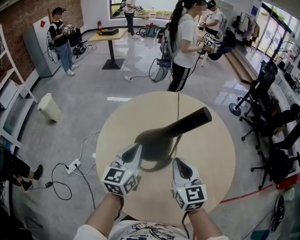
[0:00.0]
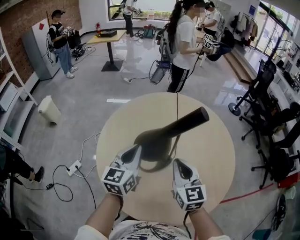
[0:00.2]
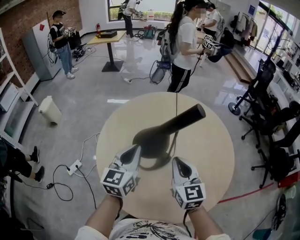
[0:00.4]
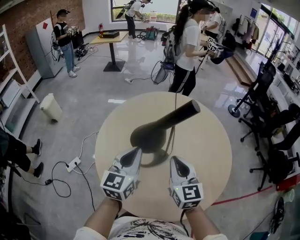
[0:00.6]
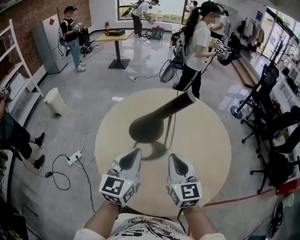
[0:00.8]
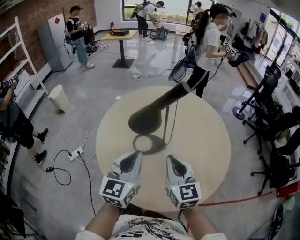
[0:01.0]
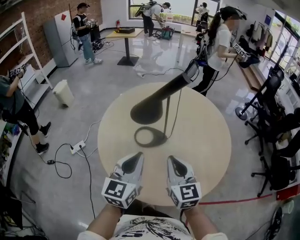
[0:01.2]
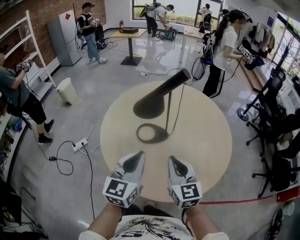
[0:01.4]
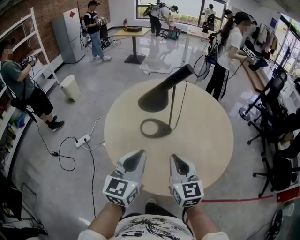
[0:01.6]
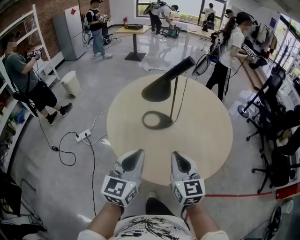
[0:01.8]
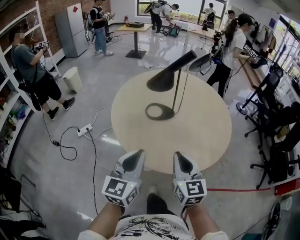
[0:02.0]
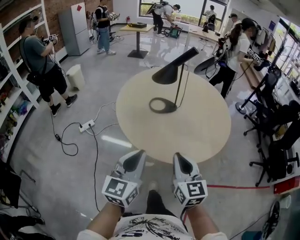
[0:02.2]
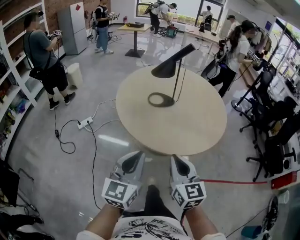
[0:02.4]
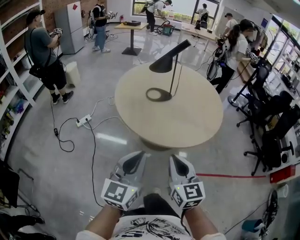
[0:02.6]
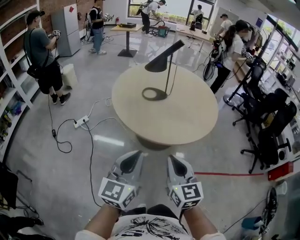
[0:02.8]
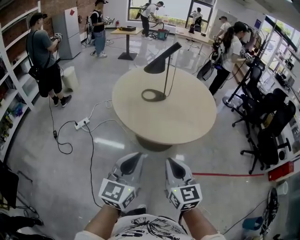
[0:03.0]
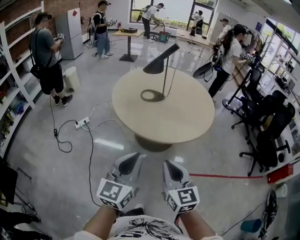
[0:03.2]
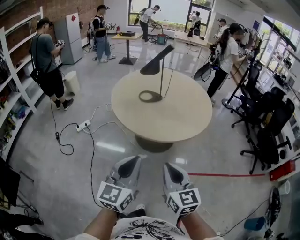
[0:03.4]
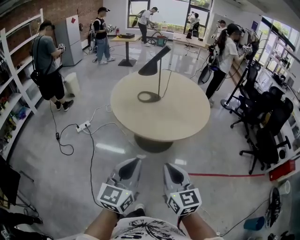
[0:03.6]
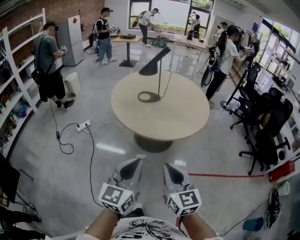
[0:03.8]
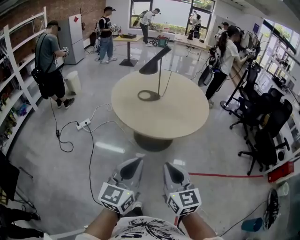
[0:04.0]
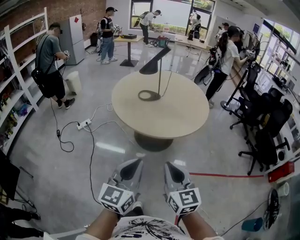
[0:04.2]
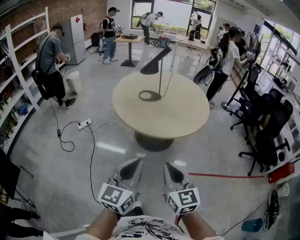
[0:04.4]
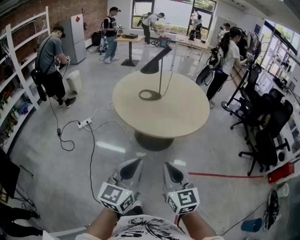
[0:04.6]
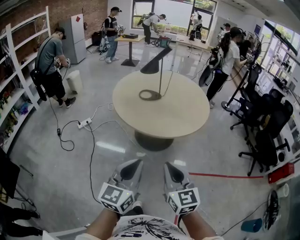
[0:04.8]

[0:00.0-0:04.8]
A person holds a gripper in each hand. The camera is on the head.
0:00.0 to 0:01.6: The two grippers go roughly 20 cm backward.
0:01.6 to 0:03.2: Both grippers move backward, about 35 cm.
0:03.2 to 0:04.8: Both grippers move backward, about 10 cm.

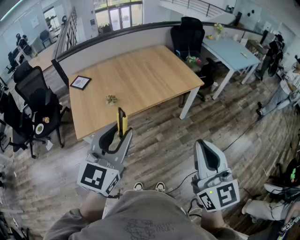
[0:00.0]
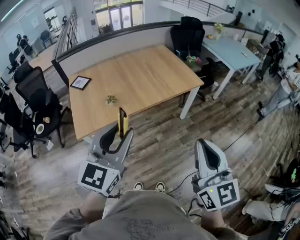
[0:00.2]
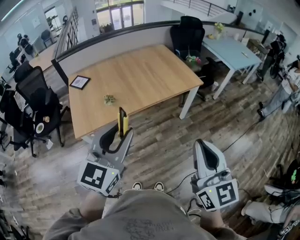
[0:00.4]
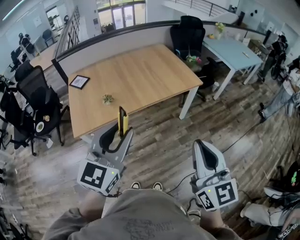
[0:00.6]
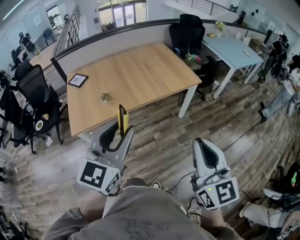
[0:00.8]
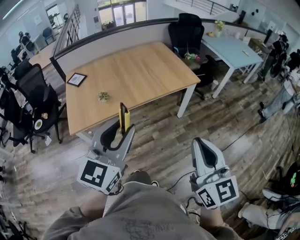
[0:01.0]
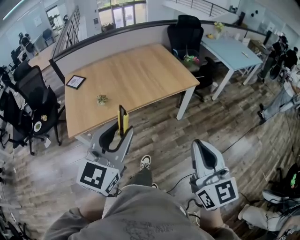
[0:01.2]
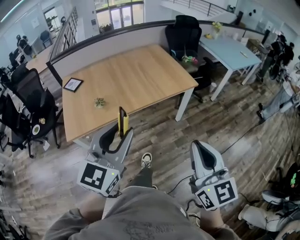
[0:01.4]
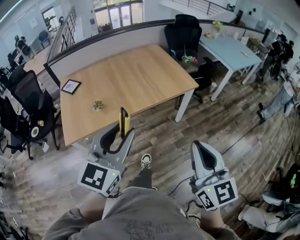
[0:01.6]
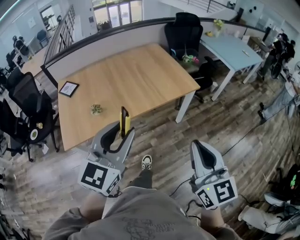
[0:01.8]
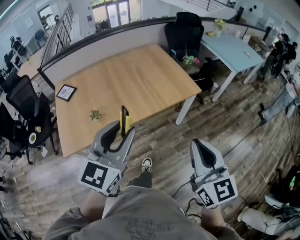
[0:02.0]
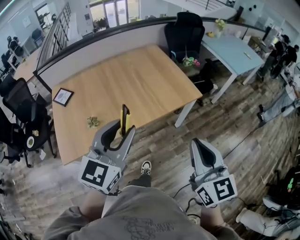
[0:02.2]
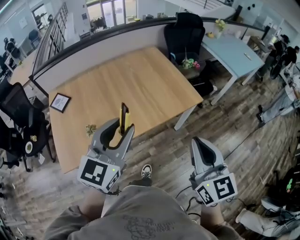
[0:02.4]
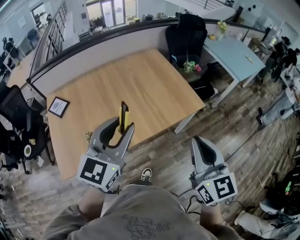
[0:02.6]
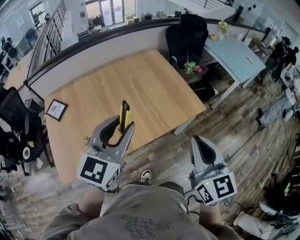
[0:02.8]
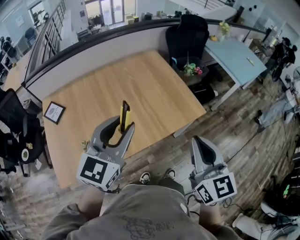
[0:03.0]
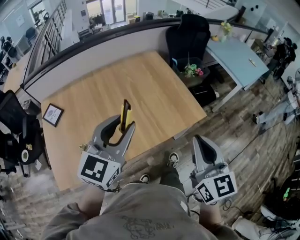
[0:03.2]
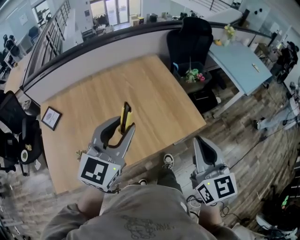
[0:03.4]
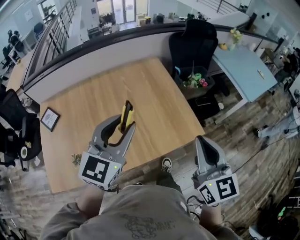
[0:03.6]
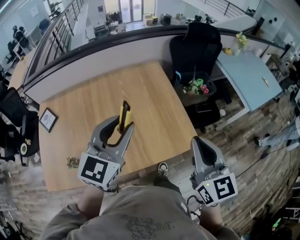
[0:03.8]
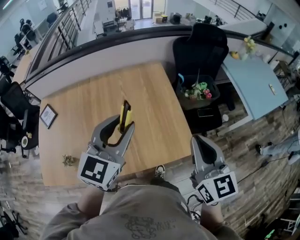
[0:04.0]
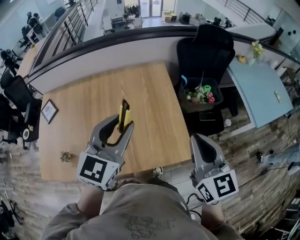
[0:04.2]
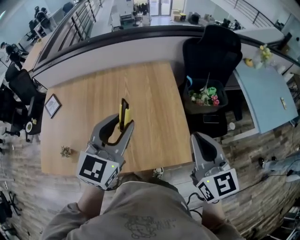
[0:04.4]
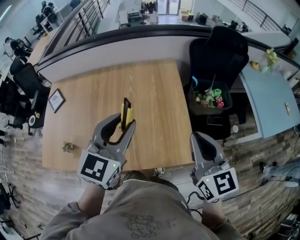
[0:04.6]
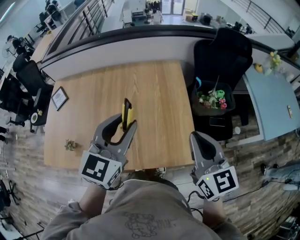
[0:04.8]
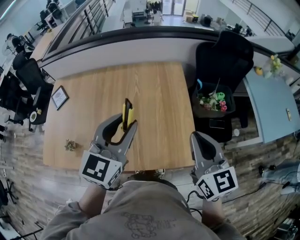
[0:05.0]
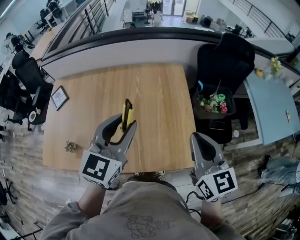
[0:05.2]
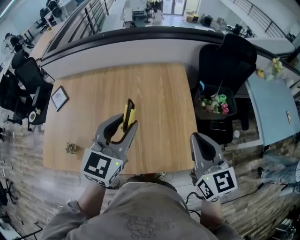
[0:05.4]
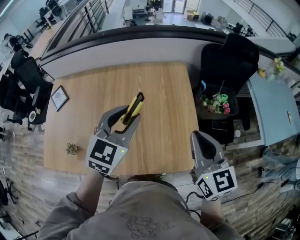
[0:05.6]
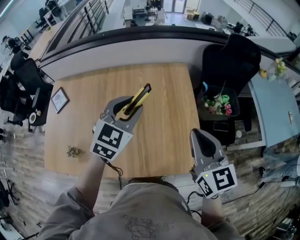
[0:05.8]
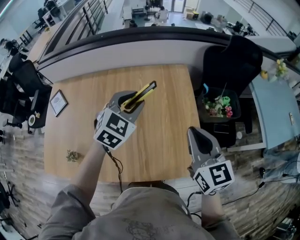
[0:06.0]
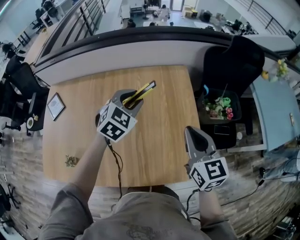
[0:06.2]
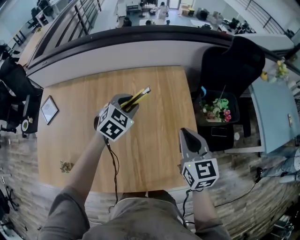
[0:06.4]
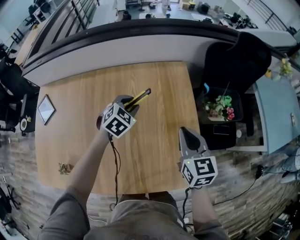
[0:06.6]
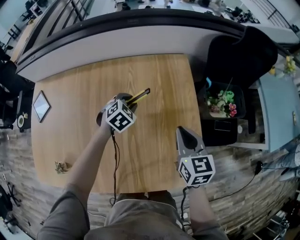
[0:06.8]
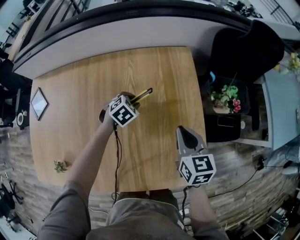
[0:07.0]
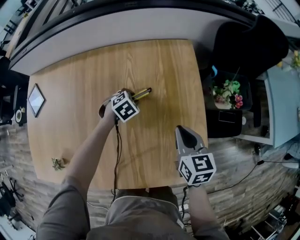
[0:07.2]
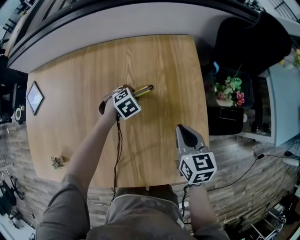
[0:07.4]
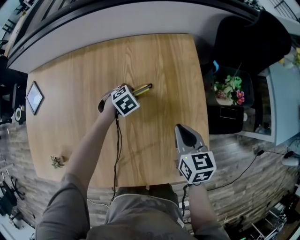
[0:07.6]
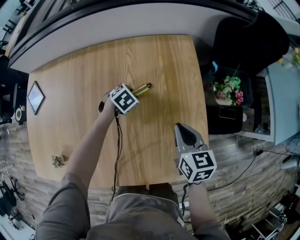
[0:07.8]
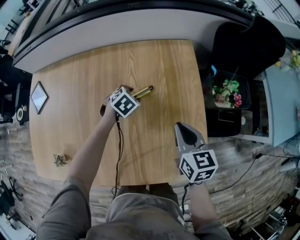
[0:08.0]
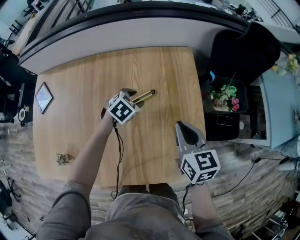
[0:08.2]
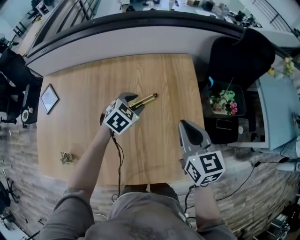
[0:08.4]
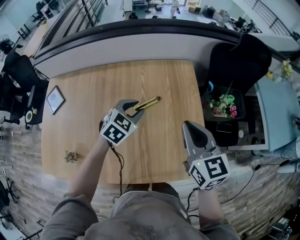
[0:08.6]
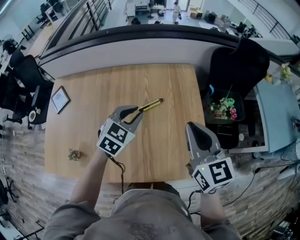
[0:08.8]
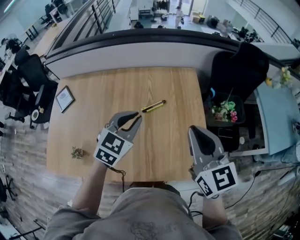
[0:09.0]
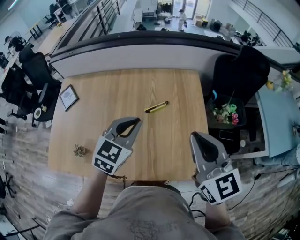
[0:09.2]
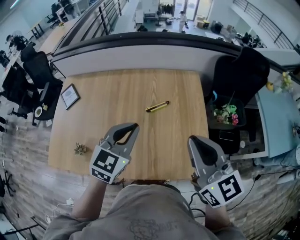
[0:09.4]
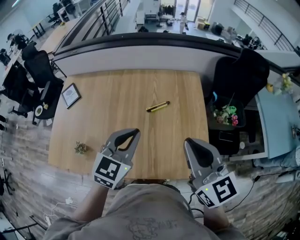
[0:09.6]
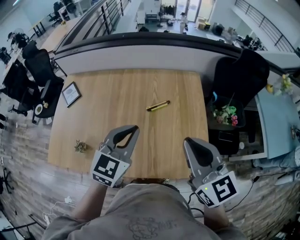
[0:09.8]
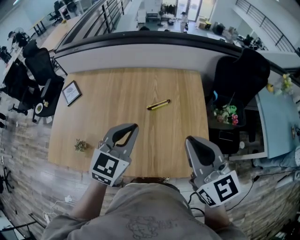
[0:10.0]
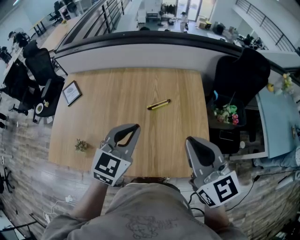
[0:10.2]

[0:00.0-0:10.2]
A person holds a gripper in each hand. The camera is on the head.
0:00.0 to 0:01.4: The right gripper heads to the right and forward, covering approximately 10 cm; the left gripper is displaced to the right by some 10 cm.
0:01.4 to 0:03.0: Both grippers travel together forward, roughly 40 cm.
0:03.0 to 0:04.4: The two grippers go roughly 35 cm forward and to the right. The right gripper changes its angle by roughly 20 degrees. Meanwhile the left gripper swivels some 20 degrees.
0:04.4 to 0:05.8: The left gripper goes some 15 cm forward, to the left and downward; the right gripper travels forward and to the left by roughly 10 cm.
0:05.8 to 0:07.2: The left gripper goes some 40 cm downward and forward, and angles its fingers downward, by approximately 40 degrees; the right gripper heads downward and forward, covering roughly 25 cm, and turns by roughly 30 degrees.
0:07.2 to 0:08.8: The left gripper travels upward and backward by roughly 30 cm, and tilts its fingers roughly 30 degrees upward. Meanwhile the right gripper travels upward by some 25 cm, and swivels some 30 degrees.
0:08.8 to 0:10.2: Both grippers move backward and upward, some 15 cm.

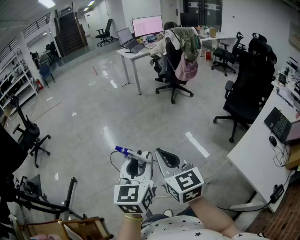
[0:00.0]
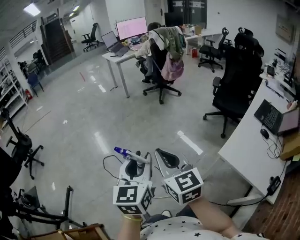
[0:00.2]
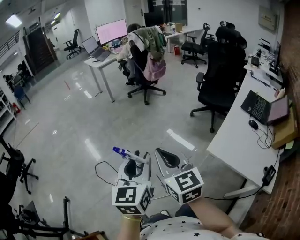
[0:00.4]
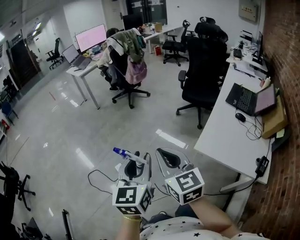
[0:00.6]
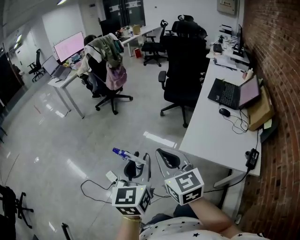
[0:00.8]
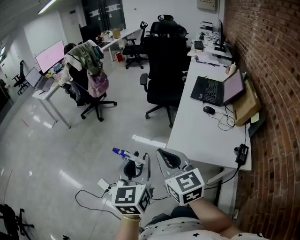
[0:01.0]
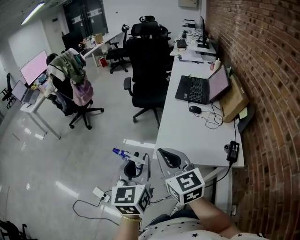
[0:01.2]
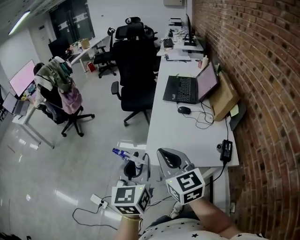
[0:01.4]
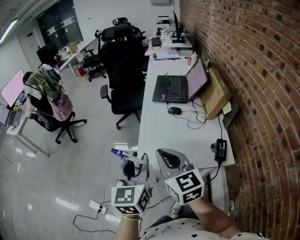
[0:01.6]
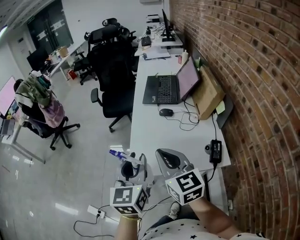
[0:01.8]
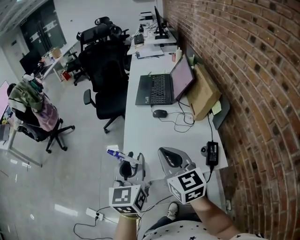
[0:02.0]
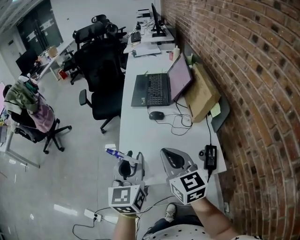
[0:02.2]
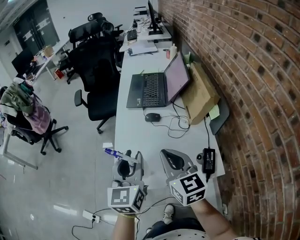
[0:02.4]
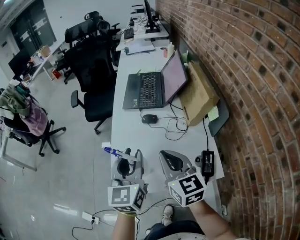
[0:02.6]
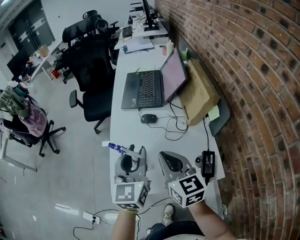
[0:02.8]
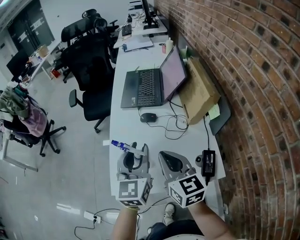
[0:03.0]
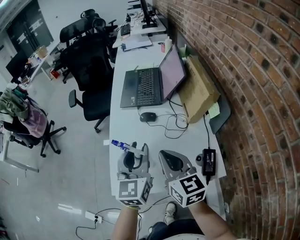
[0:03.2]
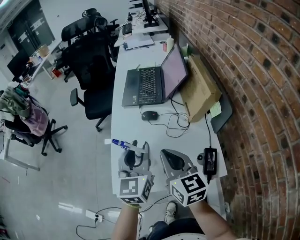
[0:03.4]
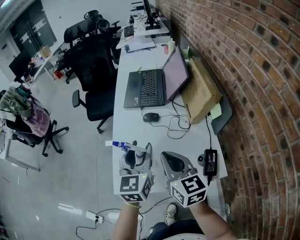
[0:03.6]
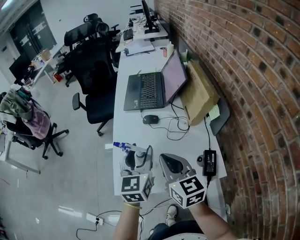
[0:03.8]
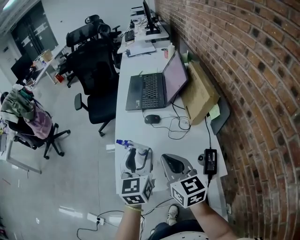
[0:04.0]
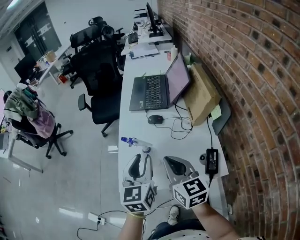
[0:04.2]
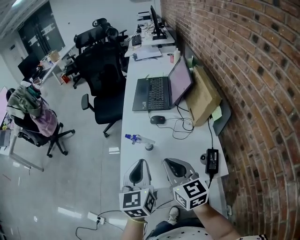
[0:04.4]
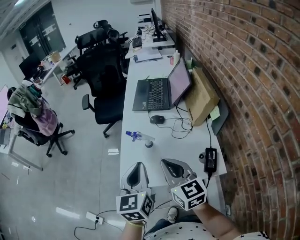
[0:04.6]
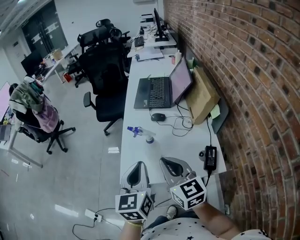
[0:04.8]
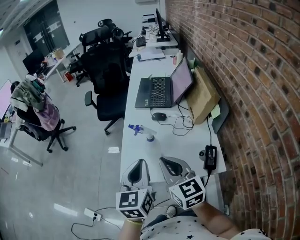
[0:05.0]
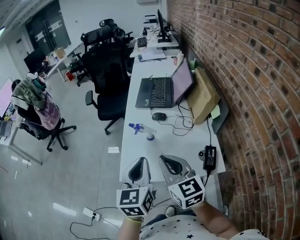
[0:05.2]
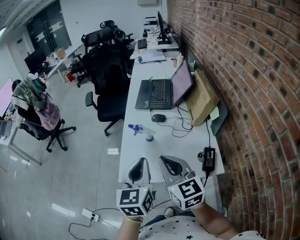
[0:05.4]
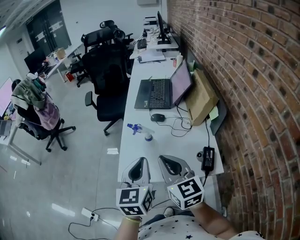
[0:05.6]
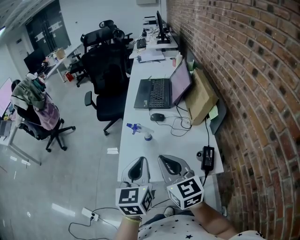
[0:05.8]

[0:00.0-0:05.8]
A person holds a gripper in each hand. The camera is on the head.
0:00.0 to 0:01.4: The two grippers travel together, about 40 cm. The right gripper changes its angle by roughly 50 degrees. The left gripper swivels roughly 50 degrees.
0:01.4 to 0:02.8: The right gripper is displaced to the right, forward and downward by roughly 25 cm, while the left gripper moves forward and to the right, approximately 30 cm.
0:02.8 to 0:04.4: Both grippers move backward, approximately 5 cm. The left gripper closes its fingers.
0:04.4 to 0:05.8: The right gripper shifts by some 5 cm.

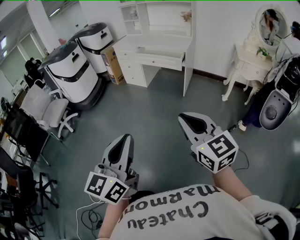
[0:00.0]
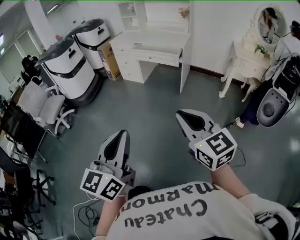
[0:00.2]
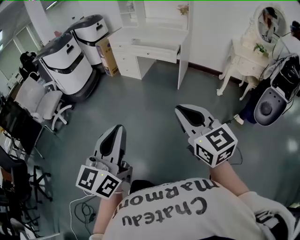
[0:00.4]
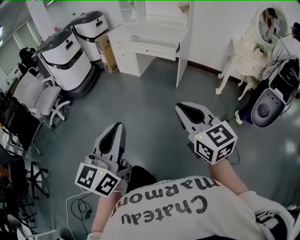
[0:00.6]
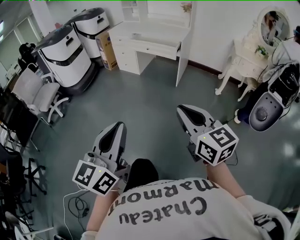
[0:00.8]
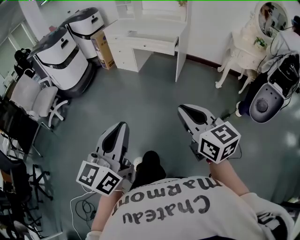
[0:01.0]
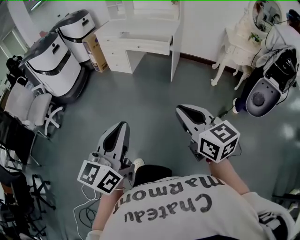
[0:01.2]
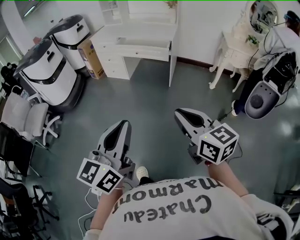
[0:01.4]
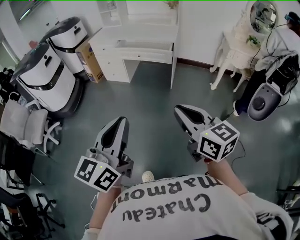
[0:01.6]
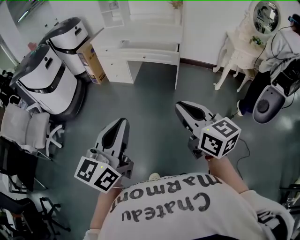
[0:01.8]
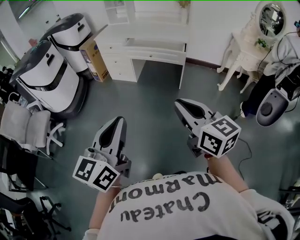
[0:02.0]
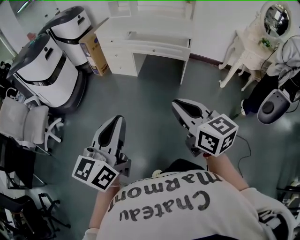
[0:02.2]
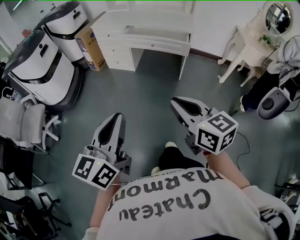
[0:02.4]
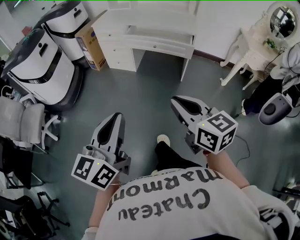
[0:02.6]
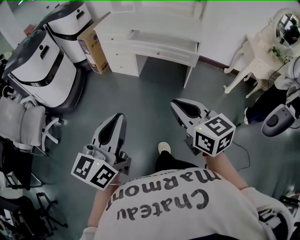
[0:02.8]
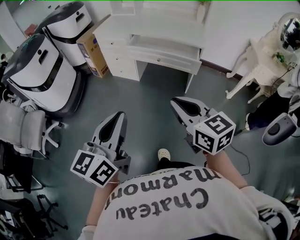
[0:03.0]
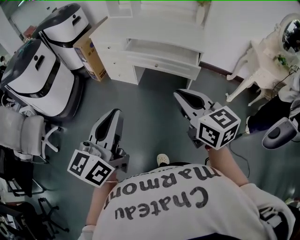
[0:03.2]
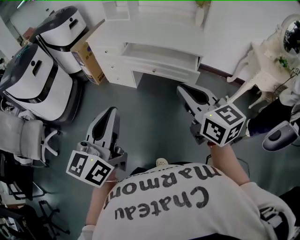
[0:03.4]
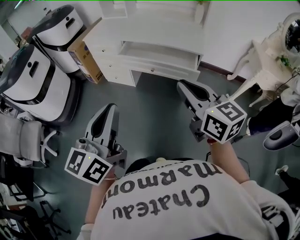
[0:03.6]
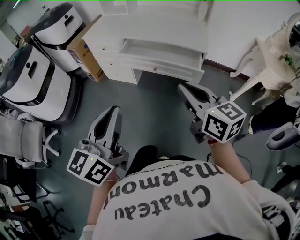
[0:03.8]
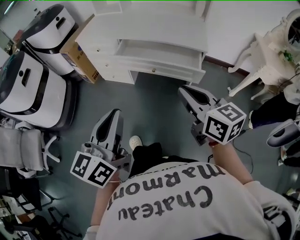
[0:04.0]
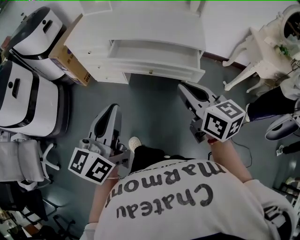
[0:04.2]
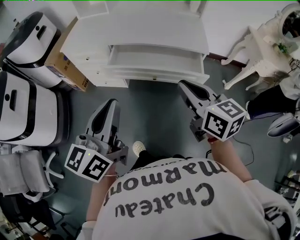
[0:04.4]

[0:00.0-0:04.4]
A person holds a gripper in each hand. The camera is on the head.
0:00.0 to 0:01.4: The two grippers go some 15 cm forward.
0:01.4 to 0:03.0: The two grippers go some 40 cm forward and to the left.
0:03.0 to 0:04.4: Both grippers travel together forward, about 35 cm.
